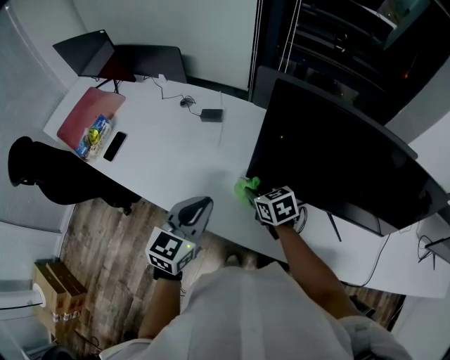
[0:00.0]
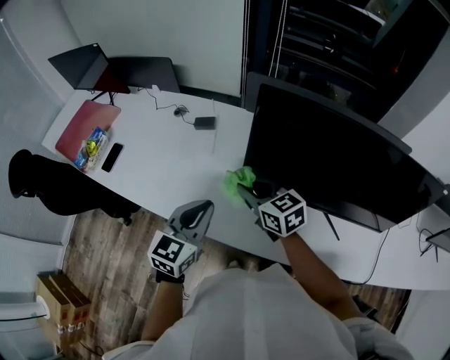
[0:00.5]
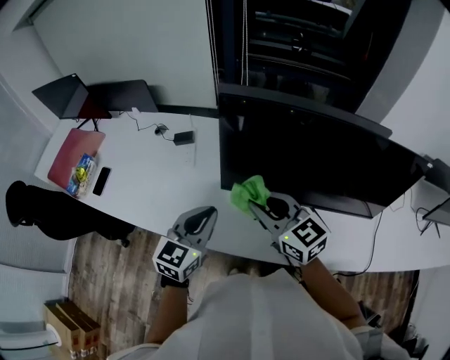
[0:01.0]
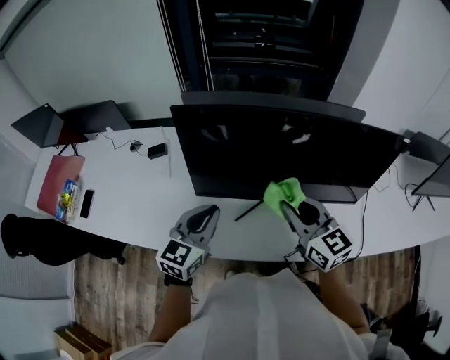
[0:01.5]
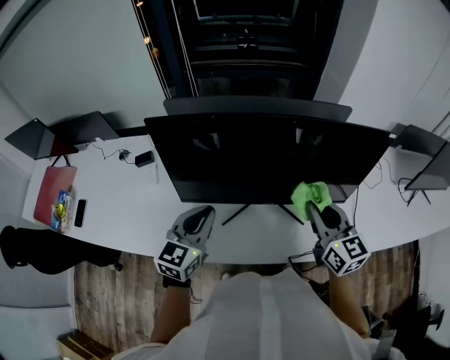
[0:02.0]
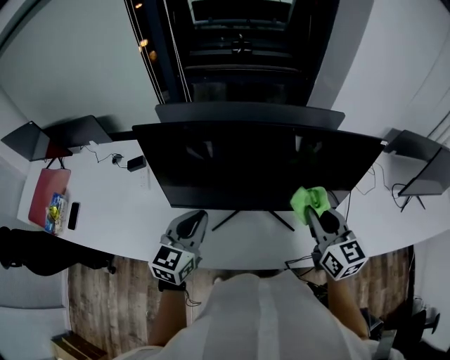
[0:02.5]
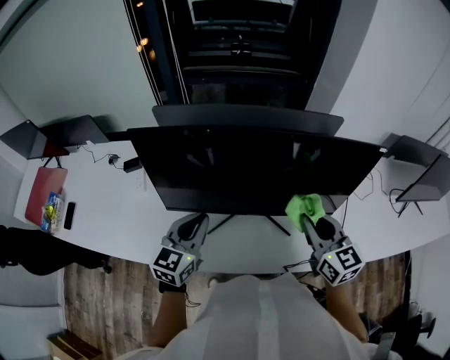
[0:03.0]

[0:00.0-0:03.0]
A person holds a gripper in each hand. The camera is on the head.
0:00.0 to 0:01.5: The left gripper heads to the right, covering some 15 cm. Meanwhile the right gripper shifts approximately 30 cm to the right, upward and backward, and tips its fingers upward by about 30 degrees.
0:01.5 to 0:03.0: The left gripper heads to the right, covering approximately 5 cm; the right gripper heads to the right, covering about 15 cm.

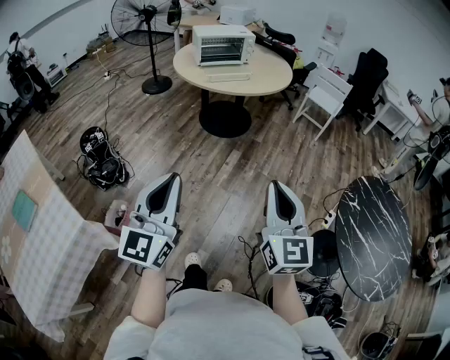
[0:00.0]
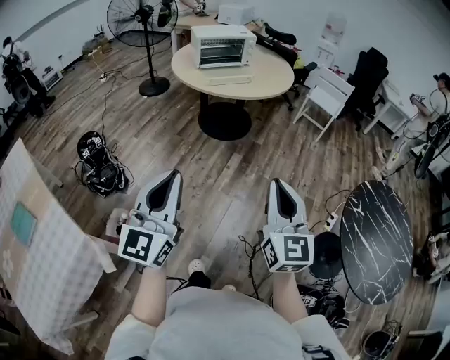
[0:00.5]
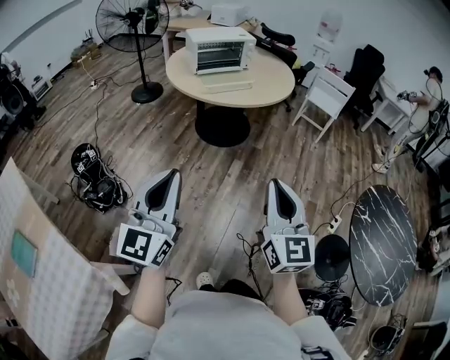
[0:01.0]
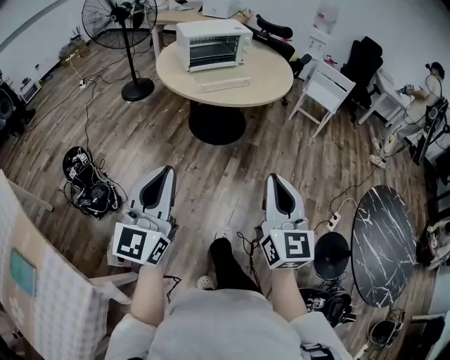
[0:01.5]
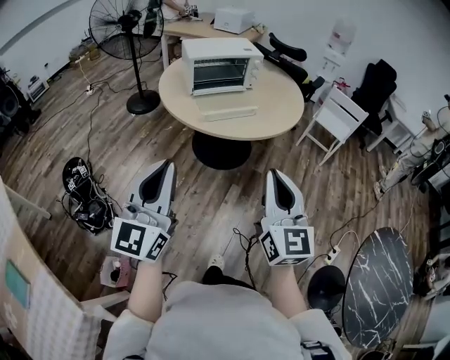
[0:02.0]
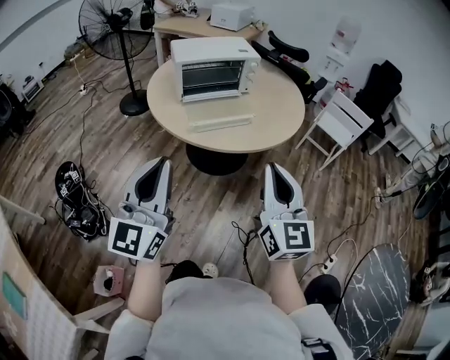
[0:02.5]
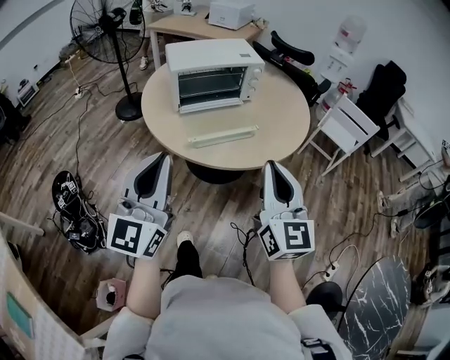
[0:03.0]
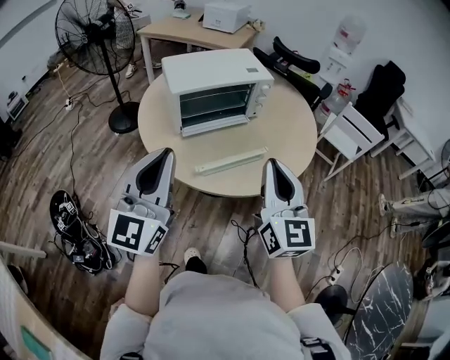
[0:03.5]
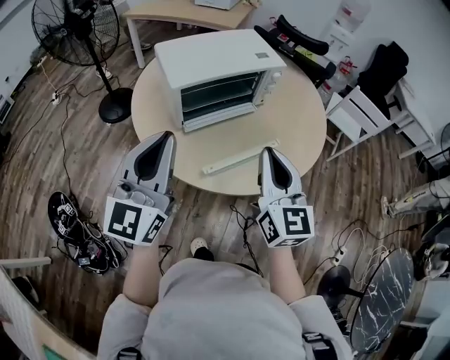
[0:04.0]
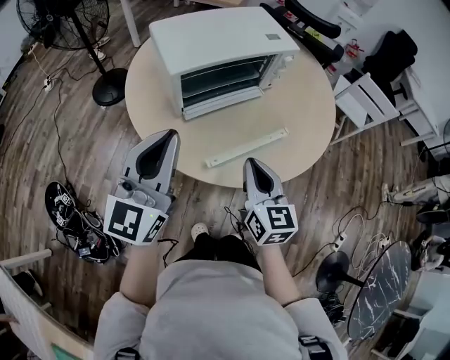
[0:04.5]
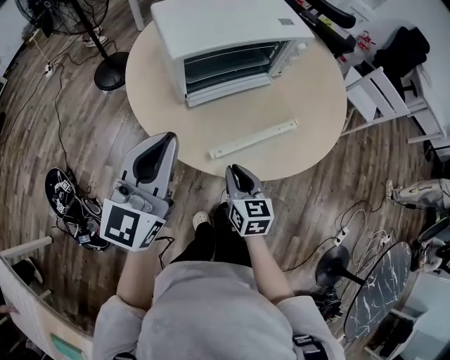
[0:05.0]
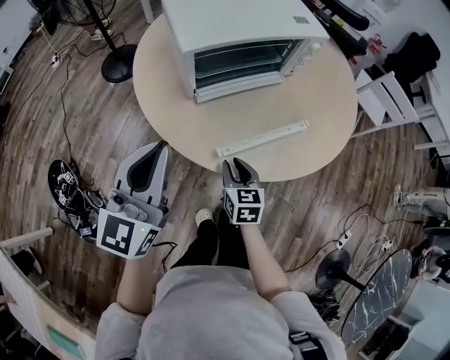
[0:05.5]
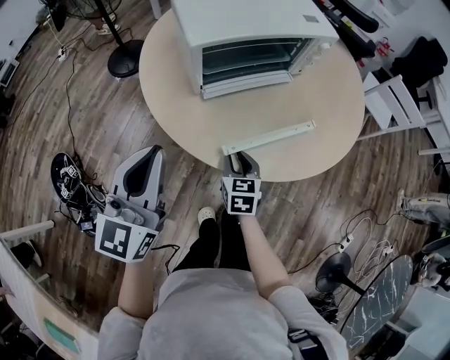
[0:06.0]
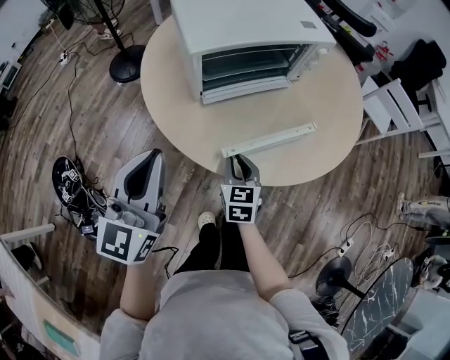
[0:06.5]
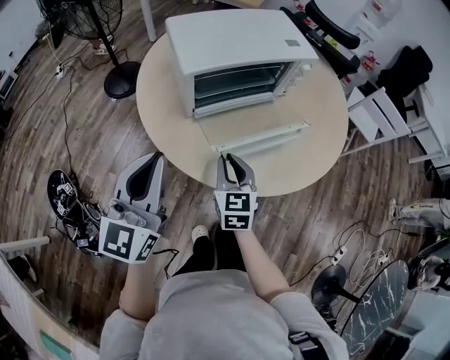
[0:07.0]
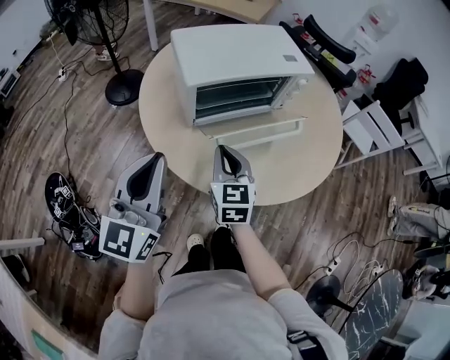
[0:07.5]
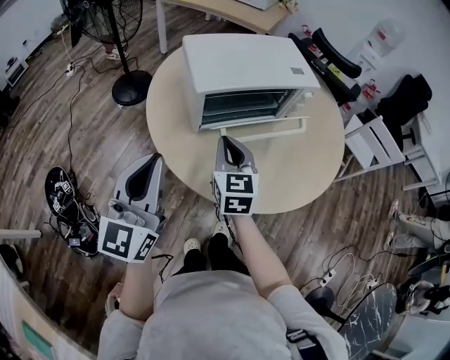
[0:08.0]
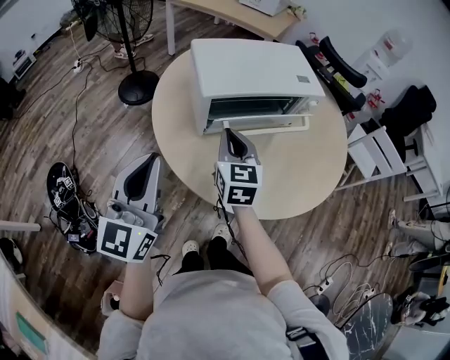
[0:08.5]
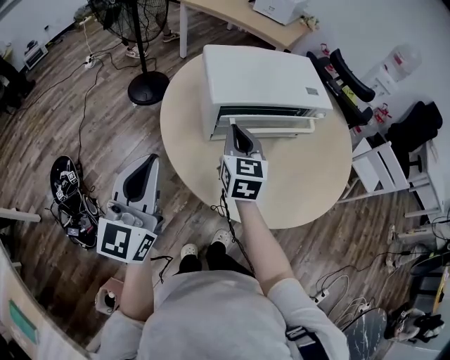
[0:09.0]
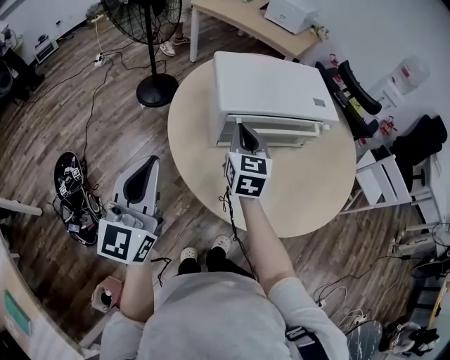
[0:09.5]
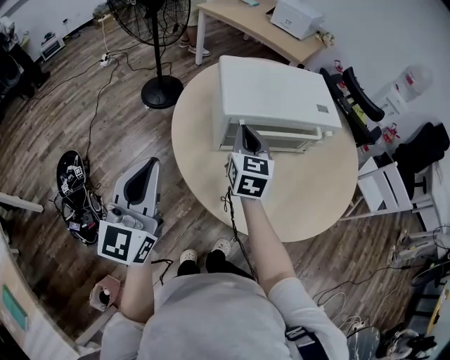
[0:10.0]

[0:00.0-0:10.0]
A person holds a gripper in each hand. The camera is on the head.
0:00.0 to 0:02.0: The pair of grippers is taken forward, about 40 cm.
0:02.0 to 0:04.0: The pair of grippers is taken forward, about 50 cm.
0:04.0 to 0:06.0: The left gripper shifts some 15 cm downward and to the left. Meanwhile the right gripper heads downward, covering roughly 35 cm, tilts its fingers approximately 40 degrees downward, and opens its fingers.
0:06.0 to 0:08.0: The left gripper heads upward, covering about 5 cm; the right gripper travels upward and forward by roughly 20 cm, rotates roughly 20 degrees, and closes.
0:08.0 to 0:10.0: The right gripper moves forward, approximately 10 cm; the left gripper changes place by some 5 cm.

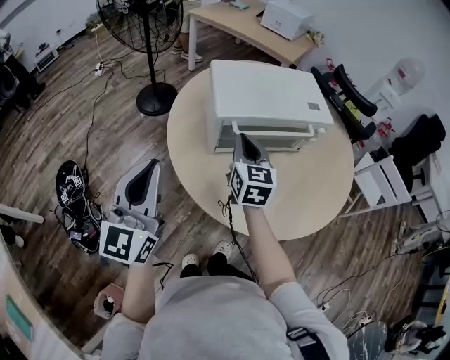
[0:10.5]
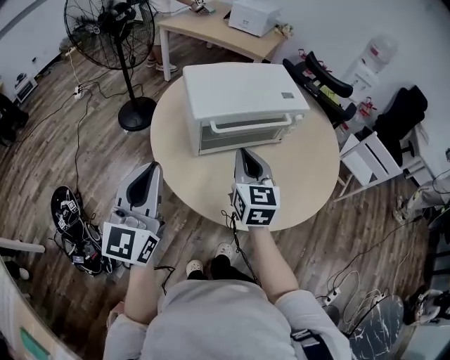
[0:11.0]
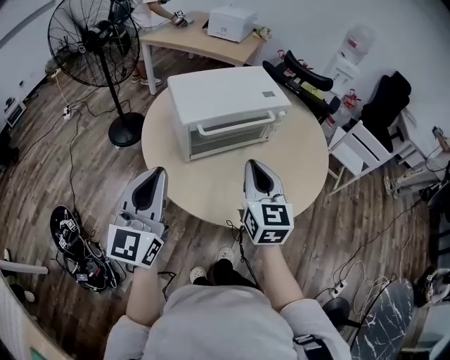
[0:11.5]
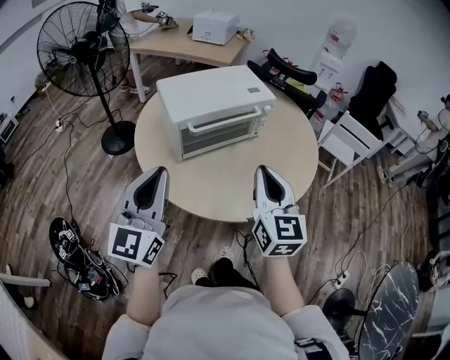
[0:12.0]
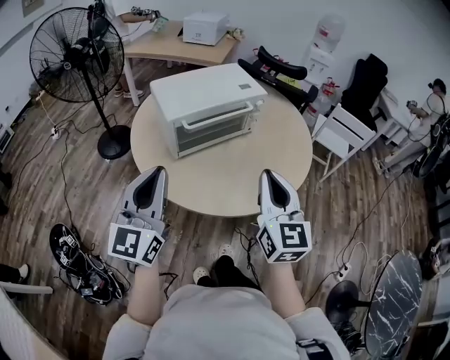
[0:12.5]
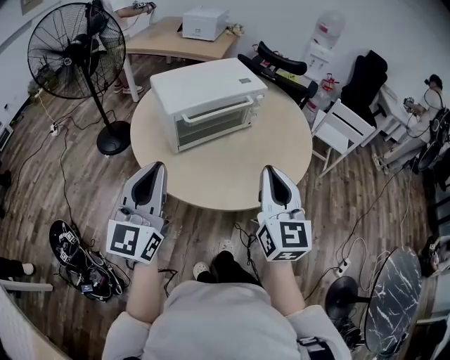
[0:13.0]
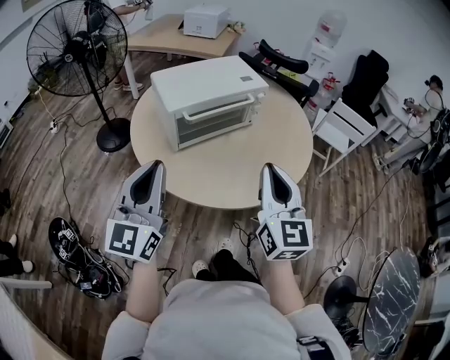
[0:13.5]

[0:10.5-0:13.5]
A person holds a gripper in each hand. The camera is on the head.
0:10.5 to 0:12.0: The right gripper heads backward, to the right and upward, covering about 25 cm, and rotates about 20 degrees. The left gripper heads to the right, covering approximately 10 cm.
0:12.0 to 0:13.5: The right gripper shifts roughly 5 cm backward.

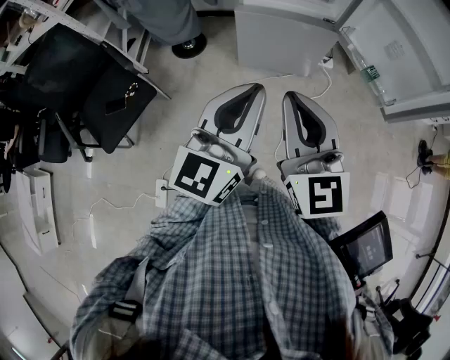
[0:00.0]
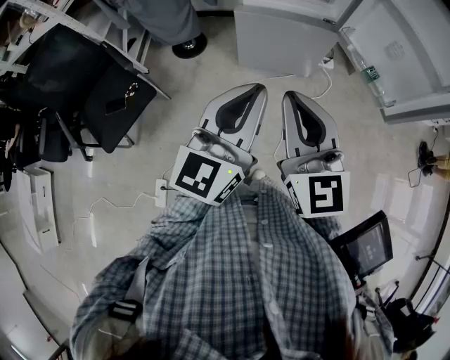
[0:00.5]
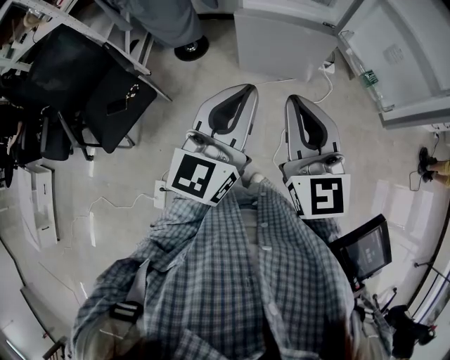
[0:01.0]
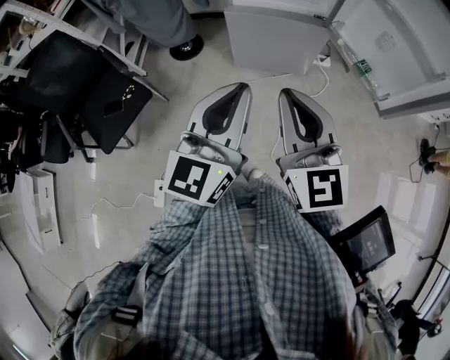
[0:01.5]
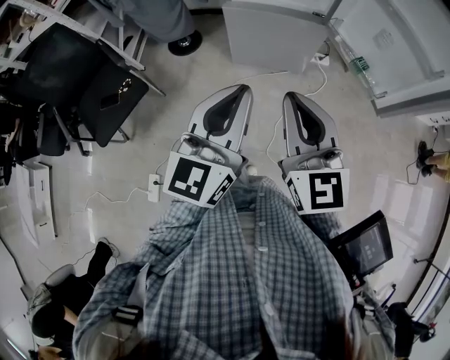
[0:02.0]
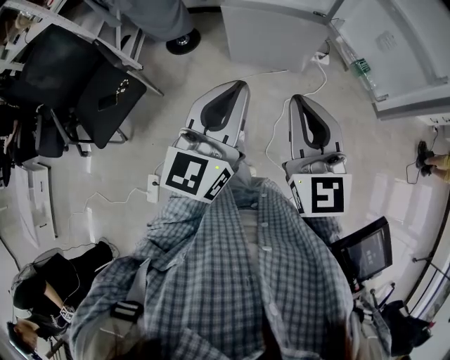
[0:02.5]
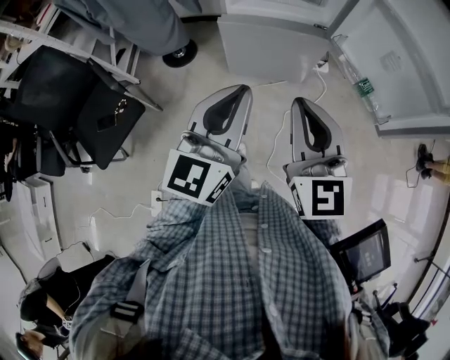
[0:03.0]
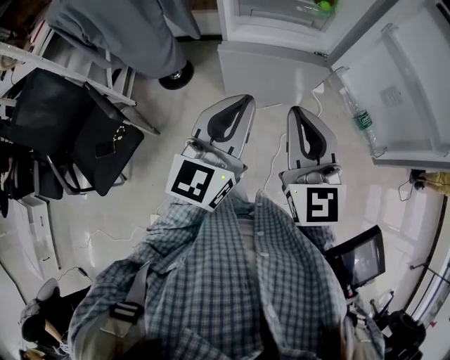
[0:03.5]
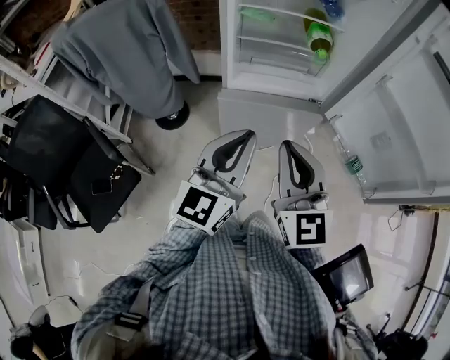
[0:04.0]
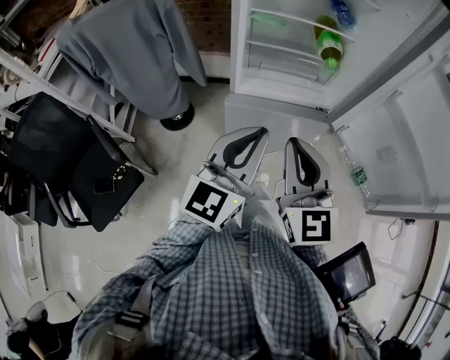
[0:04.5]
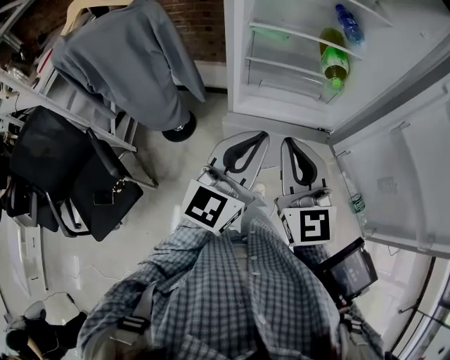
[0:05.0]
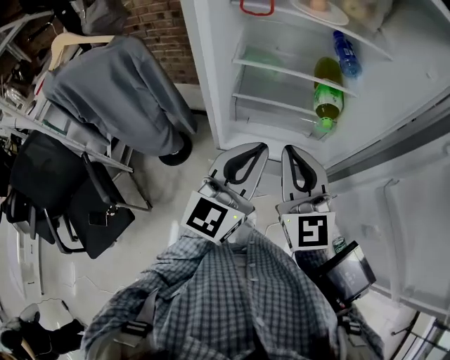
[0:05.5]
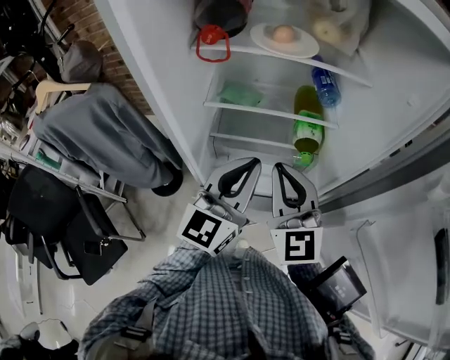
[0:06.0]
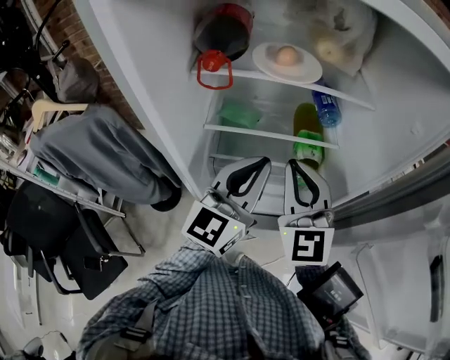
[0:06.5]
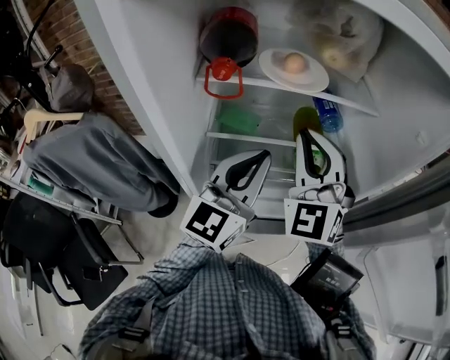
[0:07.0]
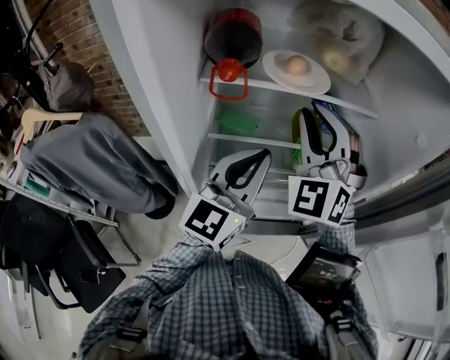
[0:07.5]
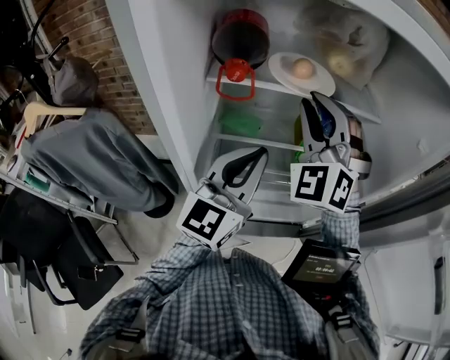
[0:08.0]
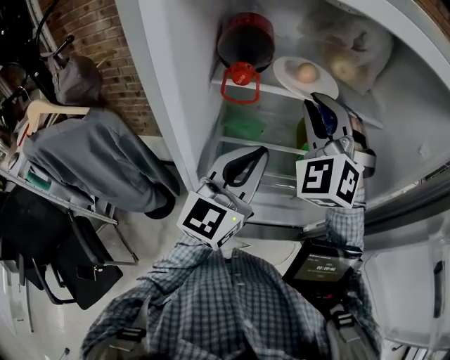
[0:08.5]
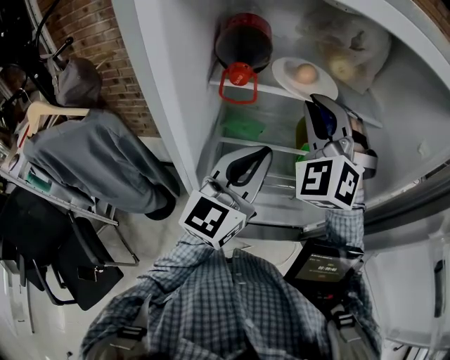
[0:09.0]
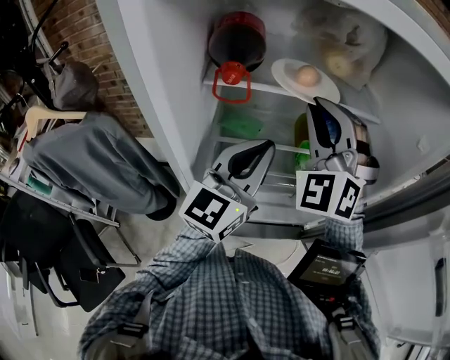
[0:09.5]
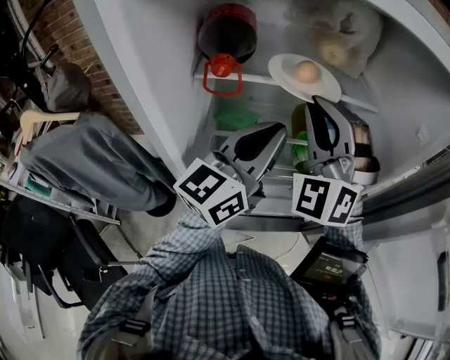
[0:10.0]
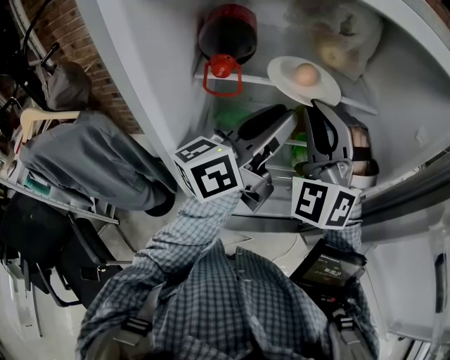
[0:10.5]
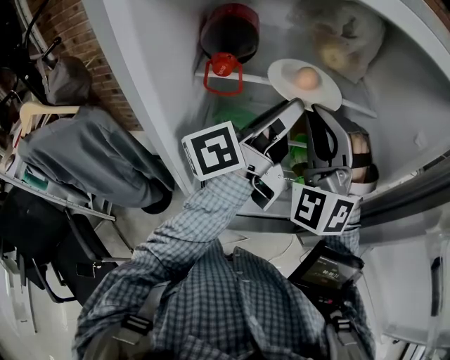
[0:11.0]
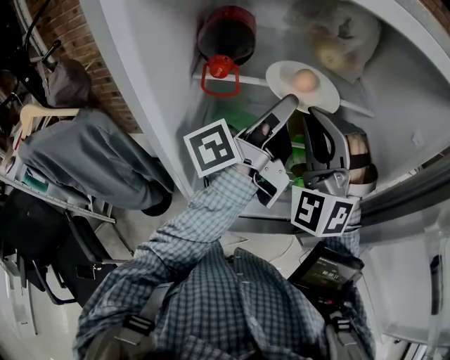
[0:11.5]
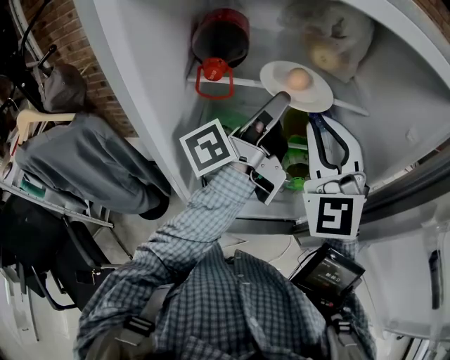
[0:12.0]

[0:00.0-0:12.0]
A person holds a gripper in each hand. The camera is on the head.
0:00.0 to 0:02.0: The right gripper travels to the right by roughly 10 cm. Meanwhile the left gripper shifts some 5 cm to the right.
0:02.0 to 0:04.0: The two grippers go some 25 cm forward.
0:04.0 to 0:06.0: Both grippers move forward, some 30 cm.
0:06.0 to 0:08.0: The left gripper moves forward, upward and to the left, roughly 10 cm. The right gripper is displaced forward and upward by some 20 cm, and rolls counterclockwise, seen from behind, by some 50 degrees.
0:08.0 to 0:10.0: The left gripper shifts by about 5 cm.
0:10.0 to 0:12.0: The right gripper turns by some 30 degrees. The left gripper travels forward by about 5 cm, rolls counterclockwise, seen from behind, by about 60 degrees, and opens.
